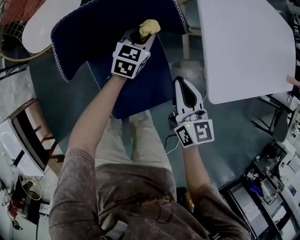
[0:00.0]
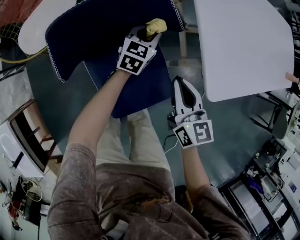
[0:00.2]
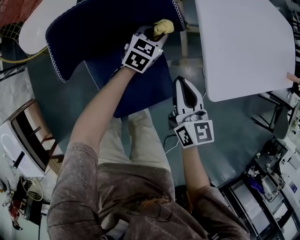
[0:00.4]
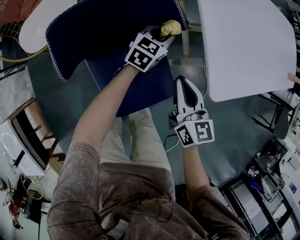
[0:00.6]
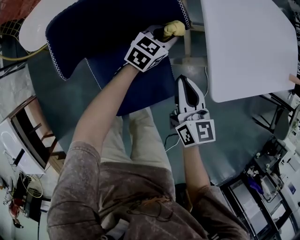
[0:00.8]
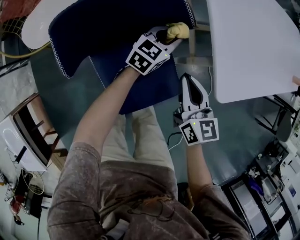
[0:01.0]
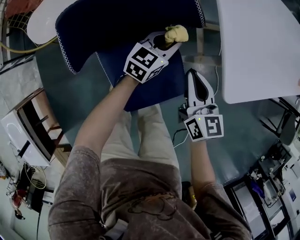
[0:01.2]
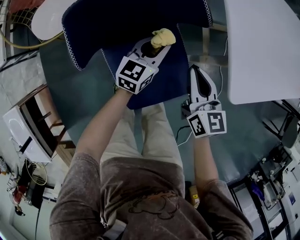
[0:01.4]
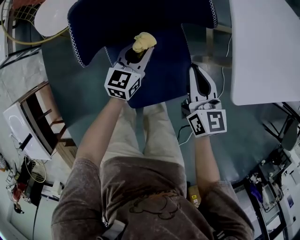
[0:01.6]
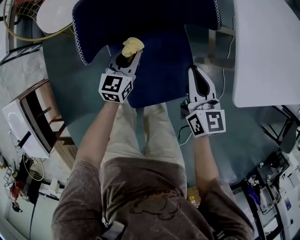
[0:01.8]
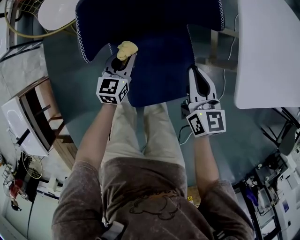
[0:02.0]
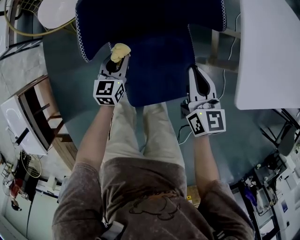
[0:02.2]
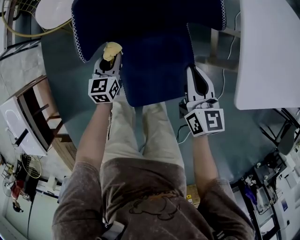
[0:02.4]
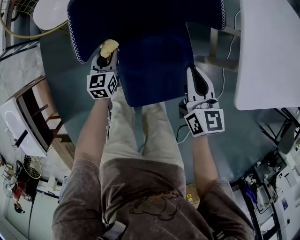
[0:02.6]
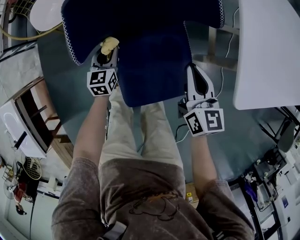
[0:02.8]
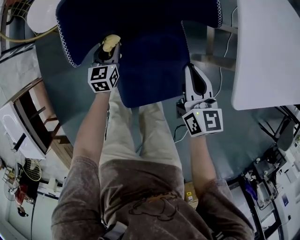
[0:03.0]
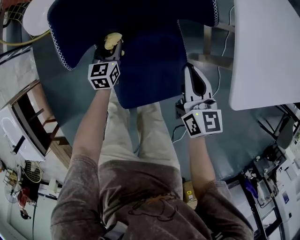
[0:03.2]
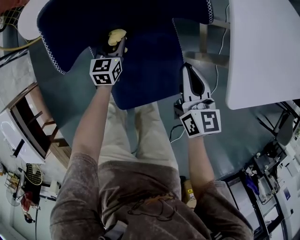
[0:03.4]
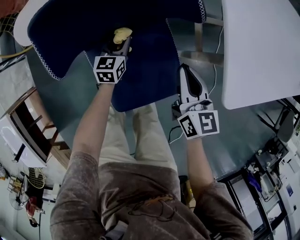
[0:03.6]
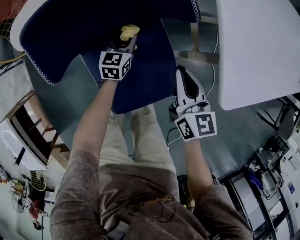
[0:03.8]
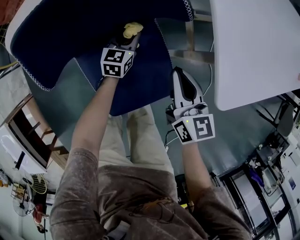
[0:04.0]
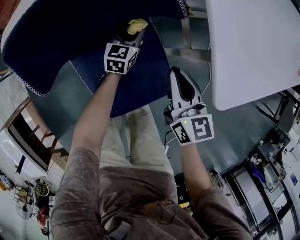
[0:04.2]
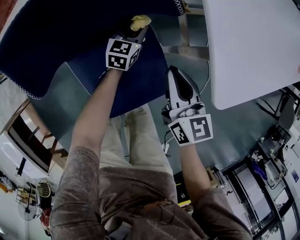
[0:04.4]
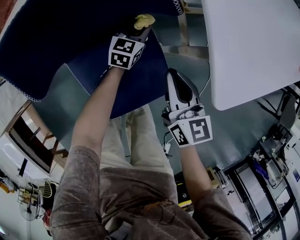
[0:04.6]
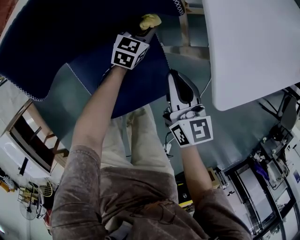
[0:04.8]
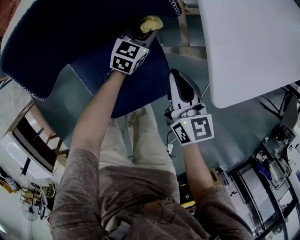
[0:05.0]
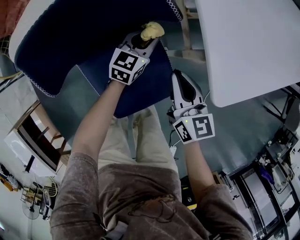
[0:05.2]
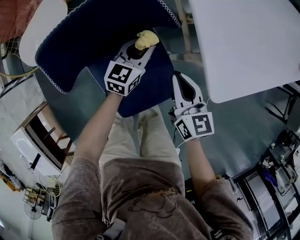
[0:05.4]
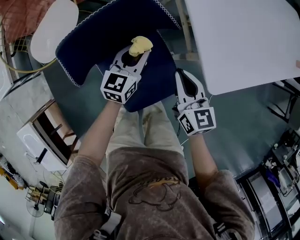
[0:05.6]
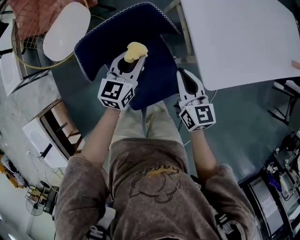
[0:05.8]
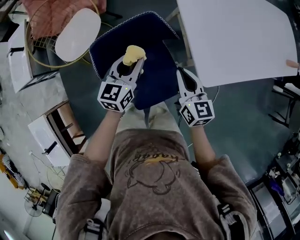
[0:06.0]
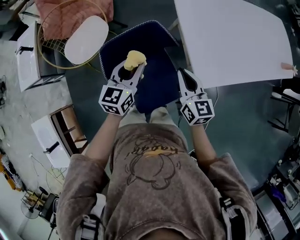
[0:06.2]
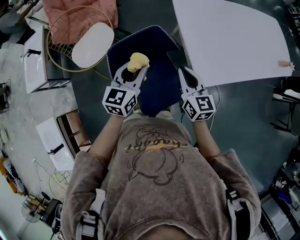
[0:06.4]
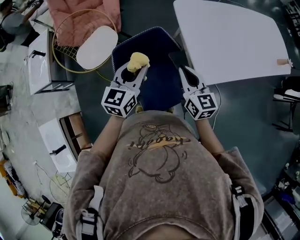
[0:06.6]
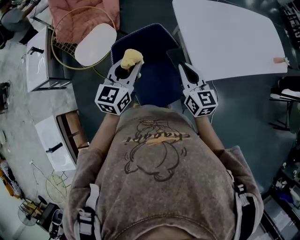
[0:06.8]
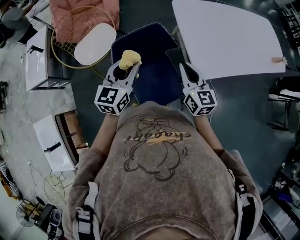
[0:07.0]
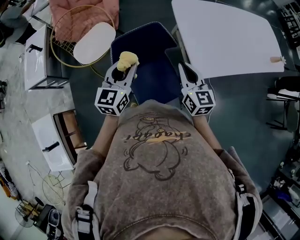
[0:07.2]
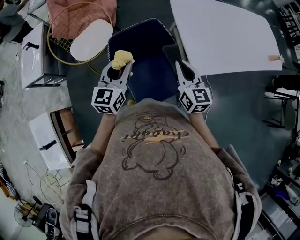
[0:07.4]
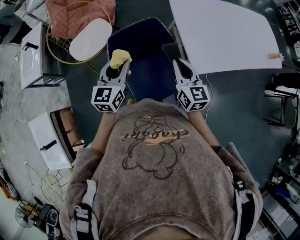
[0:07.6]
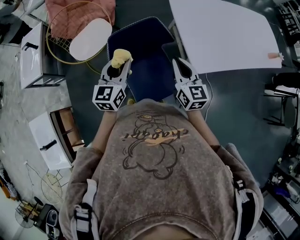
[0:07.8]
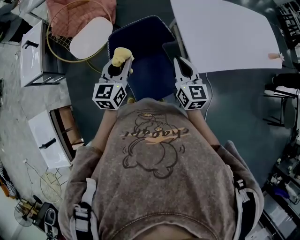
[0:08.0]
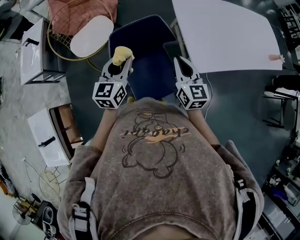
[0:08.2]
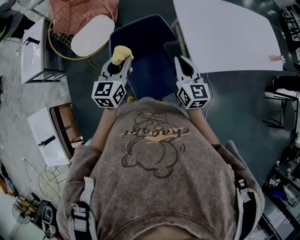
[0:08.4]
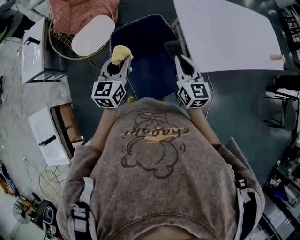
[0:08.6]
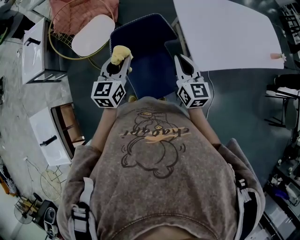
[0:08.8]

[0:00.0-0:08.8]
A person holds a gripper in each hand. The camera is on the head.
0:00.0 to 0:01.4: The left gripper heads backward, covering about 5 cm, and travels to the right and back again, about 10 cm each way.
0:01.4 to 0:03.0: The left gripper shifts roughly 25 cm to the left and downward, and swivels roughly 30 degrees.
0:03.0 to 0:04.4: The right gripper goes roughly 5 cm to the right. Meanwhile the left gripper goes roughly 25 cm to the right and forward, and rotates about 30 degrees.
0:04.4 to 0:05.8: The left gripper goes some 30 cm upward, while the right gripper is displaced upward by roughly 15 cm.
0:05.8 to 0:07.4: The left gripper shifts some 25 cm upward, backward and to the left. Meanwhile the right gripper shifts about 20 cm upward and backward.
0:07.4 to 0:08.8: The grippers make only small movements.

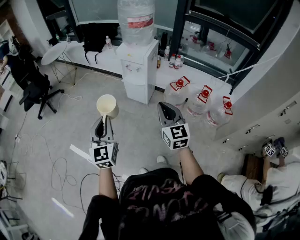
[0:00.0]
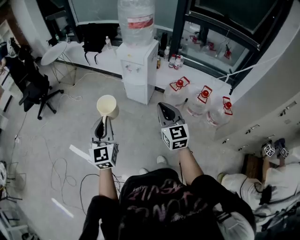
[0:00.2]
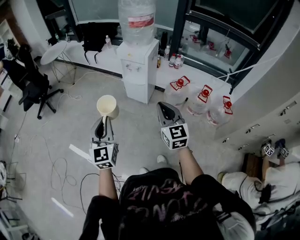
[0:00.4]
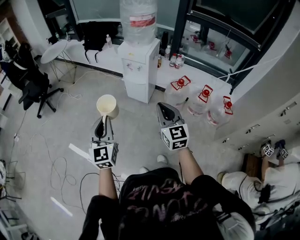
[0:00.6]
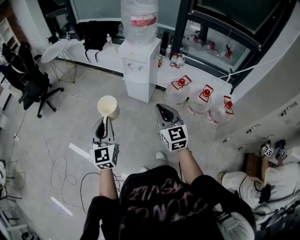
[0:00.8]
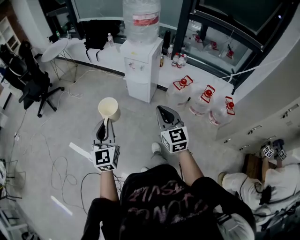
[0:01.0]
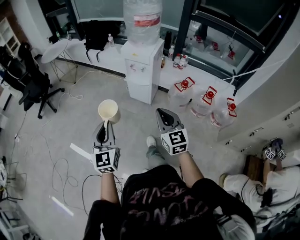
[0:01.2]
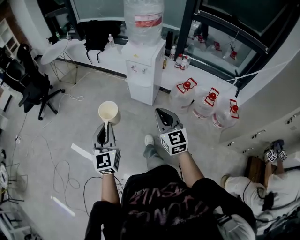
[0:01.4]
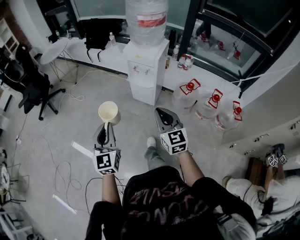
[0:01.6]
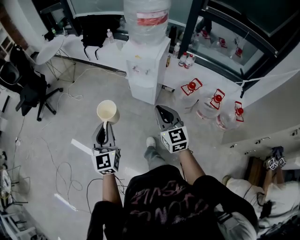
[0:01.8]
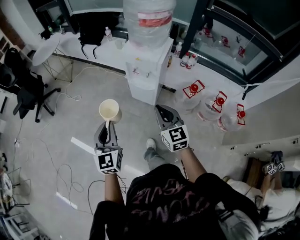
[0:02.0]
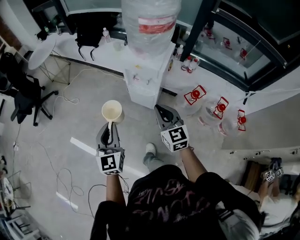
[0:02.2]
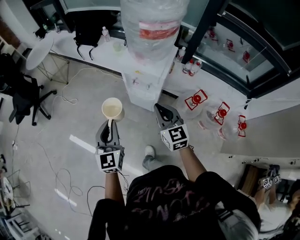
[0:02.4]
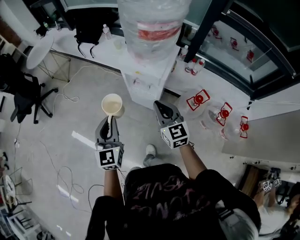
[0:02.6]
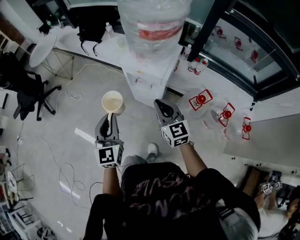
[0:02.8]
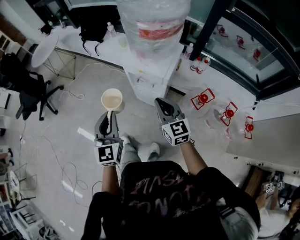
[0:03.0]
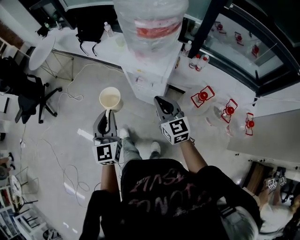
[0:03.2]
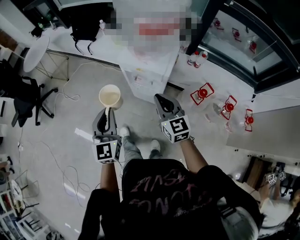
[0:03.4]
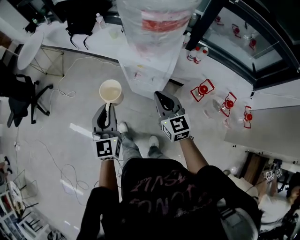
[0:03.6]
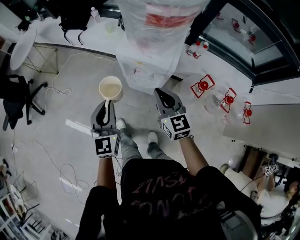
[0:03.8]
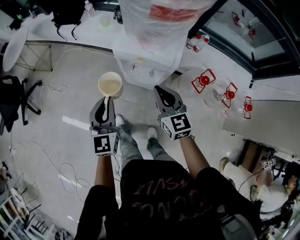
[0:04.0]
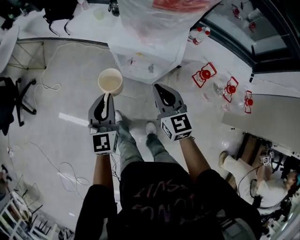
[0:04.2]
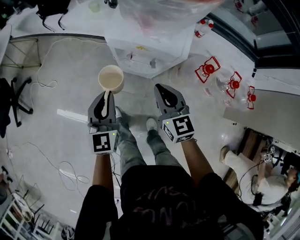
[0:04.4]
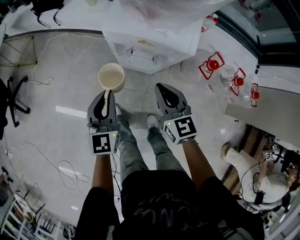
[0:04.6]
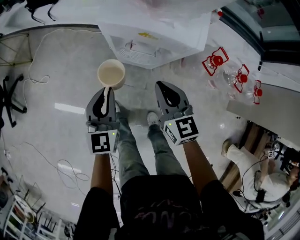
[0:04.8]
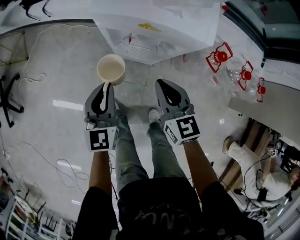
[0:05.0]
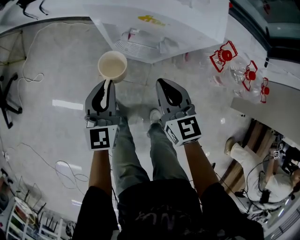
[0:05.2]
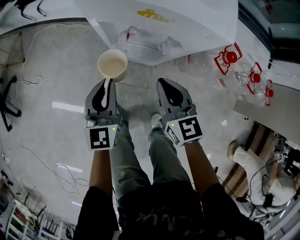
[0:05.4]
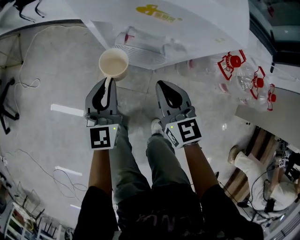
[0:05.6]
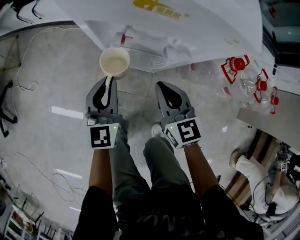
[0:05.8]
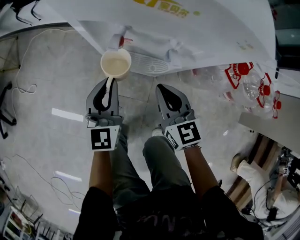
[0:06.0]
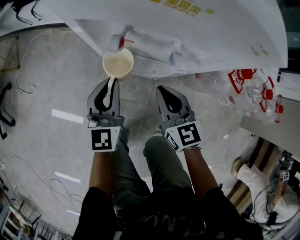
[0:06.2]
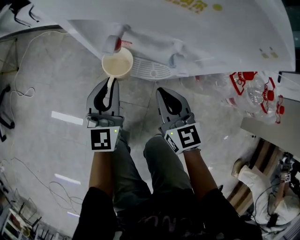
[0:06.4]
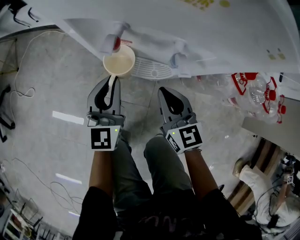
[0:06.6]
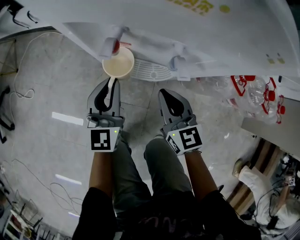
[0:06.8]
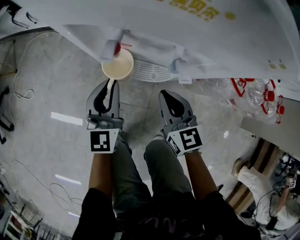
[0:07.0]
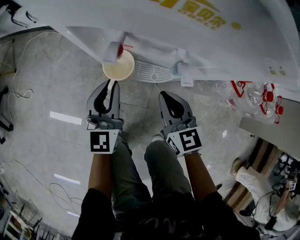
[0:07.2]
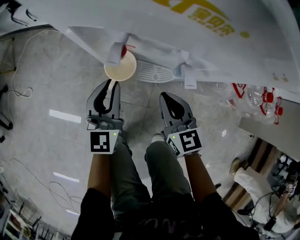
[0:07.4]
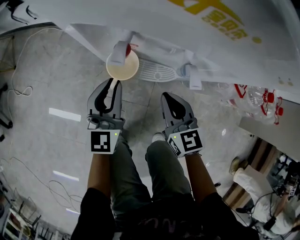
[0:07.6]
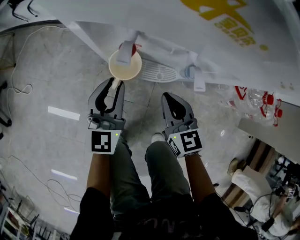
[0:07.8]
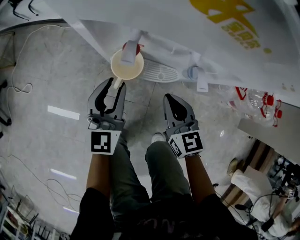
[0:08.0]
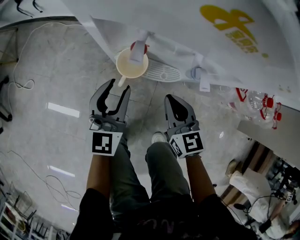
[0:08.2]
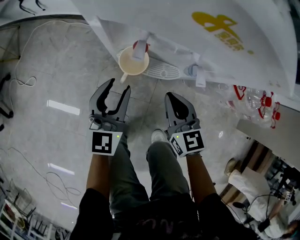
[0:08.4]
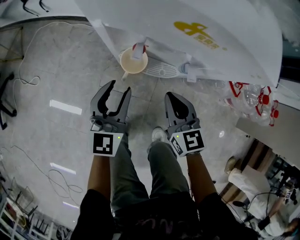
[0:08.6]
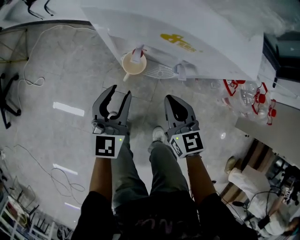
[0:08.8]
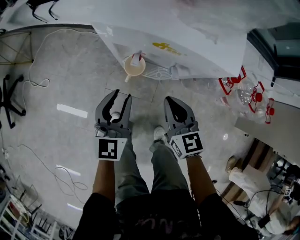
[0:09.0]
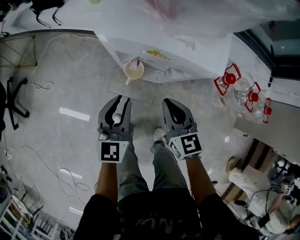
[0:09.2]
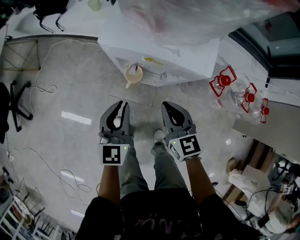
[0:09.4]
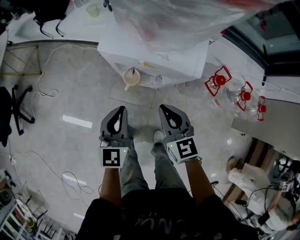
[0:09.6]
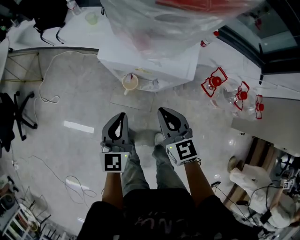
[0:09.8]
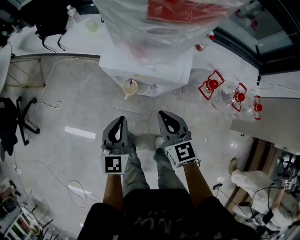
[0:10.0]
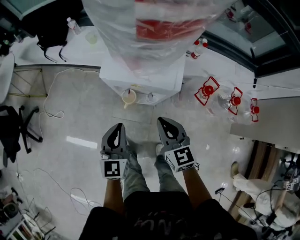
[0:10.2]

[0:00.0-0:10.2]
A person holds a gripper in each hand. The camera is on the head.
0:00.0 to 0:01.4: The right gripper goes some 10 cm forward and to the left. The left gripper goes approximately 5 cm forward.
0:01.4 to 0:03.0: Both grippers travel together forward, approximately 35 cm.
0:03.0 to 0:04.4: The two grippers go about 20 cm downward and forward.
0:04.4 to 0:05.8: Both grippers travel together downward, about 25 cm.
0:05.8 to 0:07.2: Both grippers move downward, about 5 cm.
0:07.2 to 0:08.8: The grippers both shift upward by roughly 10 cm. The left gripper opens.
0:08.8 to 0:10.2: Both grippers move upward, roughly 20 cm. The left gripper closes its fingers.

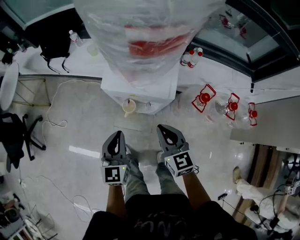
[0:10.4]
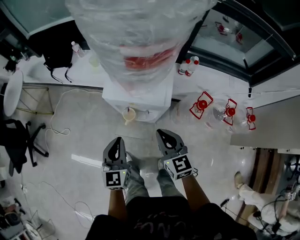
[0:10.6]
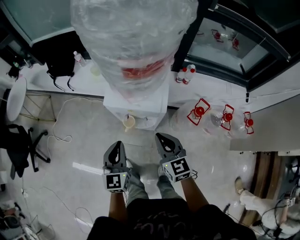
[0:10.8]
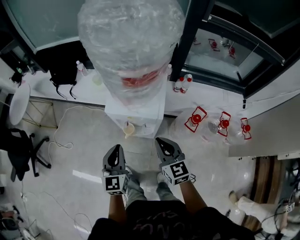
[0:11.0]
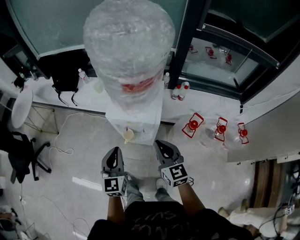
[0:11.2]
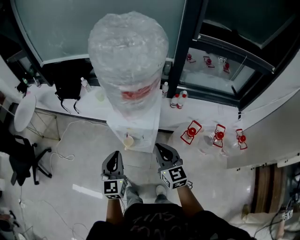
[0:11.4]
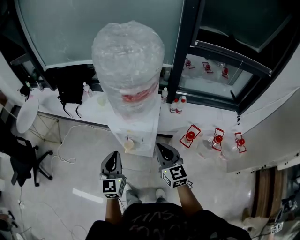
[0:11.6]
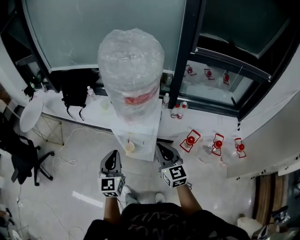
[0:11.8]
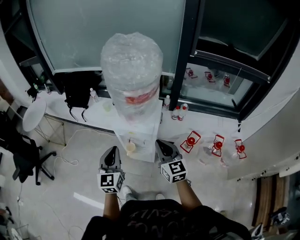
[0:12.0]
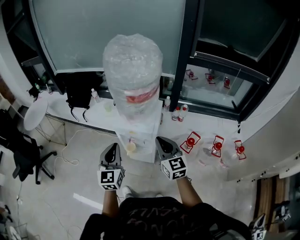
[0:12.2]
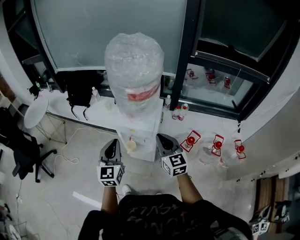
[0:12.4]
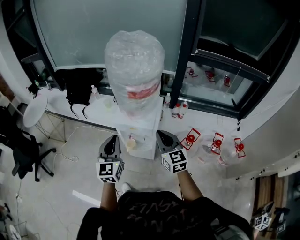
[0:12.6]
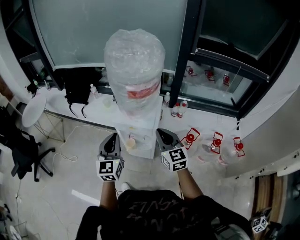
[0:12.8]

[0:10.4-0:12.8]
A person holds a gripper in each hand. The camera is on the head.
0:10.4 to 0:11.6: Both grippers move upward, roughly 15 cm.
0:11.6 to 0:12.8: The right gripper changes place by approximately 5 cm, while the left gripper moves upward, about 5 cm.

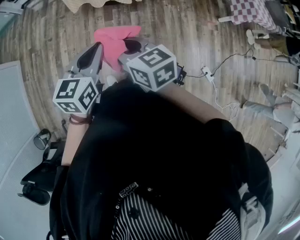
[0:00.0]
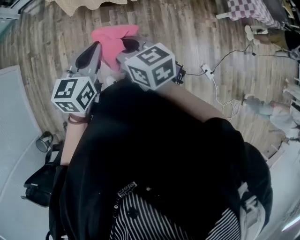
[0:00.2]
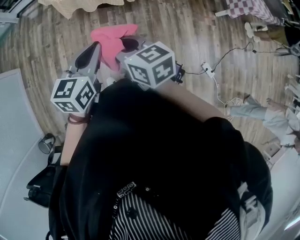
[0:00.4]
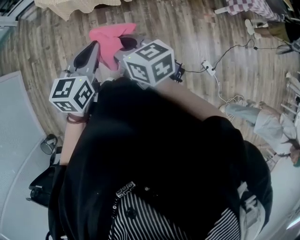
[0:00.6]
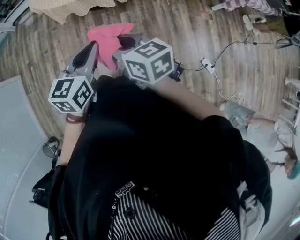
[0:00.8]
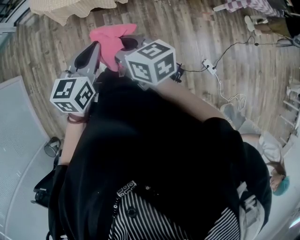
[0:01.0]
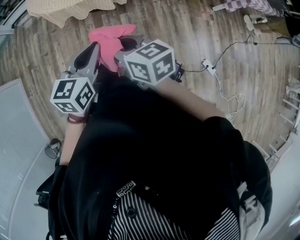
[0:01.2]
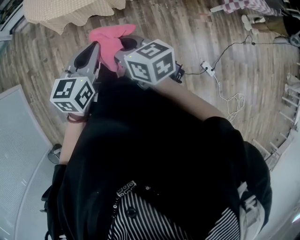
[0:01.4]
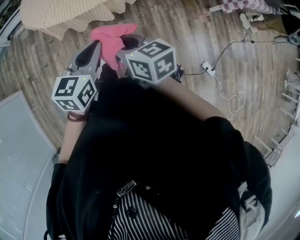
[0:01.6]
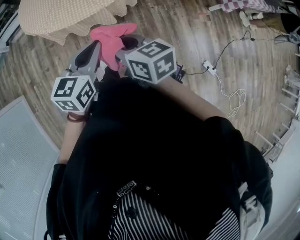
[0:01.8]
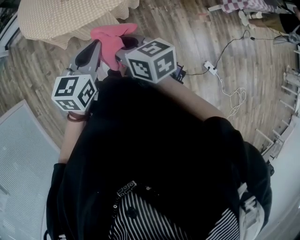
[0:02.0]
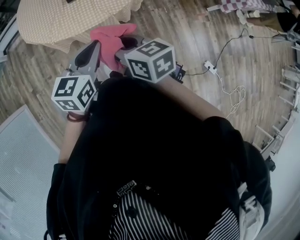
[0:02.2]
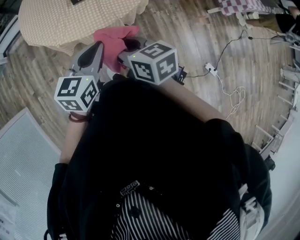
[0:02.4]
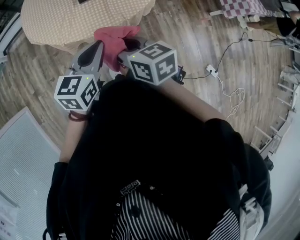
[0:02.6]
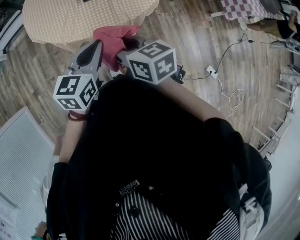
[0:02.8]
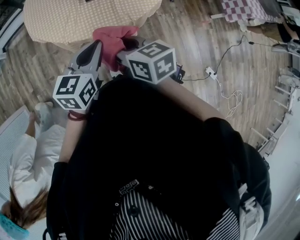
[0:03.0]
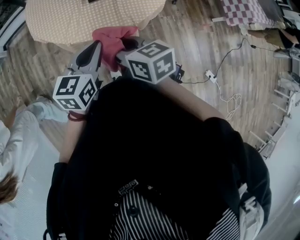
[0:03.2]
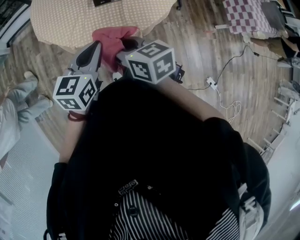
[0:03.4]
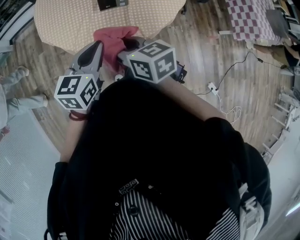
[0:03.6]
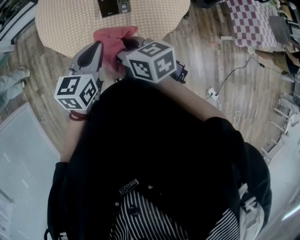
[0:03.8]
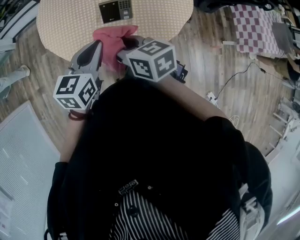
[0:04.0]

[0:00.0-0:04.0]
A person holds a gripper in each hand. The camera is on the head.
0:00.0 to 0:01.4: Both grippers travel together to the right and forward, some 15 cm.
0:01.4 to 0:02.6: Both grippers move forward and to the left, about 35 cm.
0:02.6 to 0:04.0: Both grippers move forward, roughly 25 cm.
